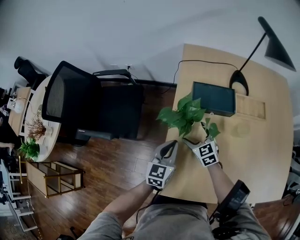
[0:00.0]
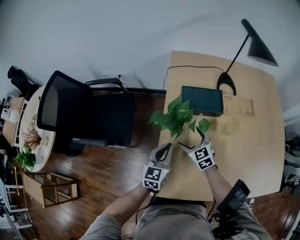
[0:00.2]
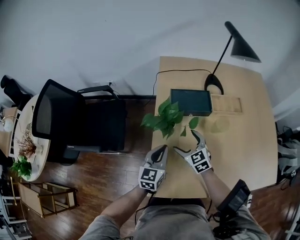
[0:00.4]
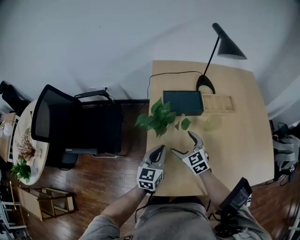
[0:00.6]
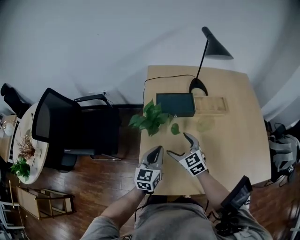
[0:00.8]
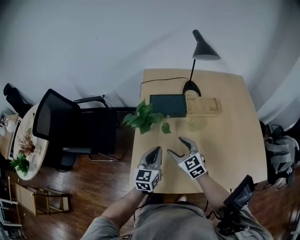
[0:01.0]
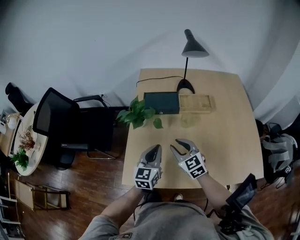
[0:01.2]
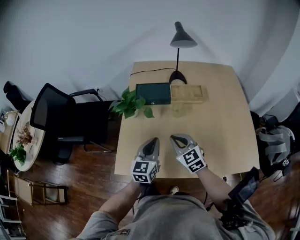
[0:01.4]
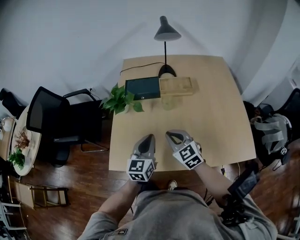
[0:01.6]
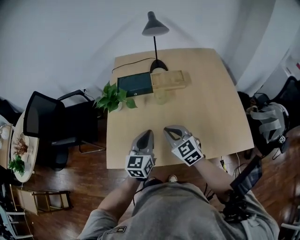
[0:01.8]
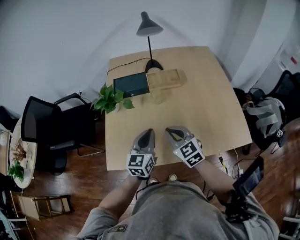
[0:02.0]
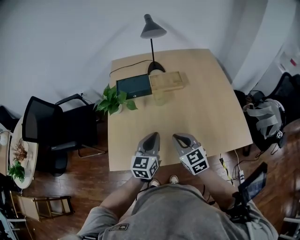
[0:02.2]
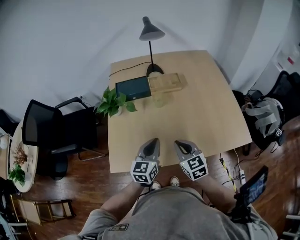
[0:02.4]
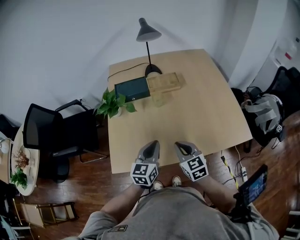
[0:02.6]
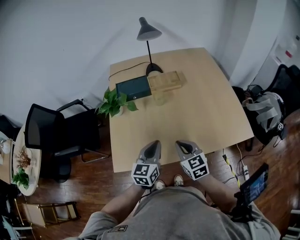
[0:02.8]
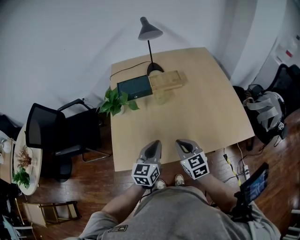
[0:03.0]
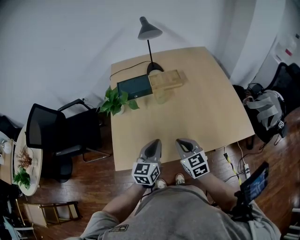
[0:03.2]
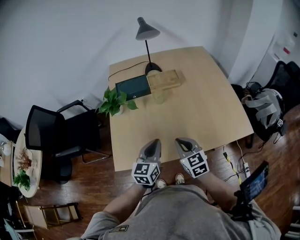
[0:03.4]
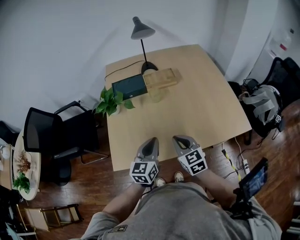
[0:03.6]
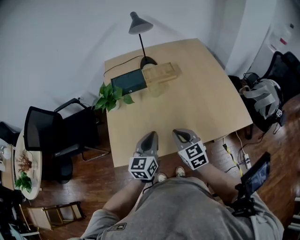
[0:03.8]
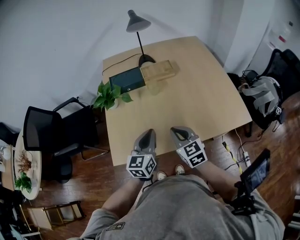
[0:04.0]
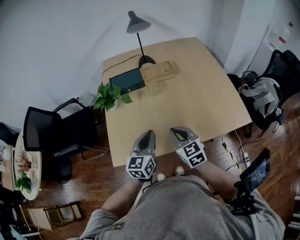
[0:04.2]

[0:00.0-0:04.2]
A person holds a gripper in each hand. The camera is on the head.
0:00.0 to 0:01.4: The right gripper shifts approximately 30 cm backward, to the right and upward, and closes. The left gripper is displaced to the right, backward and upward by approximately 25 cm.
0:01.4 to 0:02.8: Both grippers travel together backward and to the right, approximately 10 cm. The right gripper rotates some 20 degrees.
0:02.8 to 0:04.2: The grippers stay close to where they were, moving slightly.

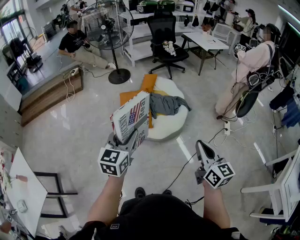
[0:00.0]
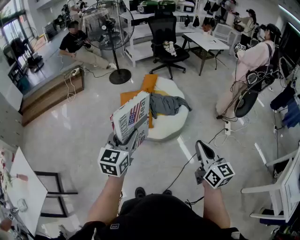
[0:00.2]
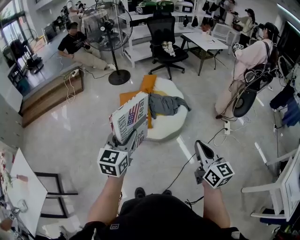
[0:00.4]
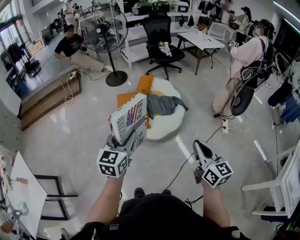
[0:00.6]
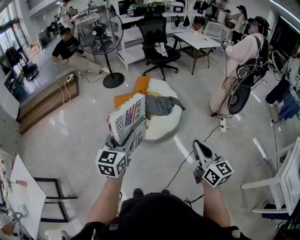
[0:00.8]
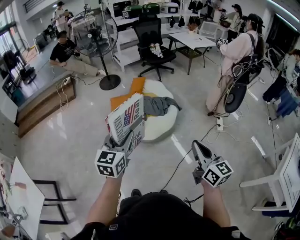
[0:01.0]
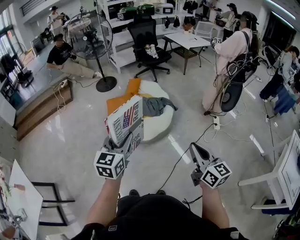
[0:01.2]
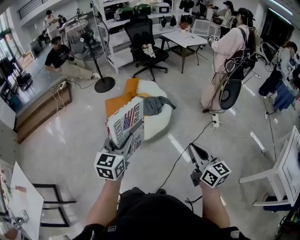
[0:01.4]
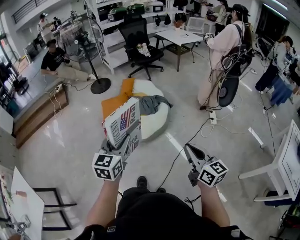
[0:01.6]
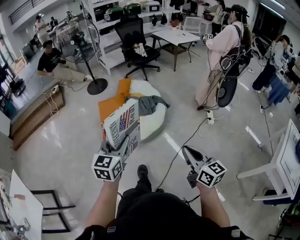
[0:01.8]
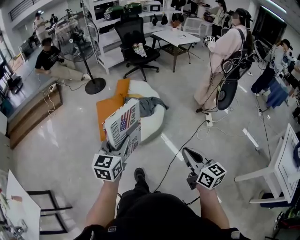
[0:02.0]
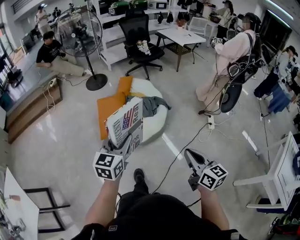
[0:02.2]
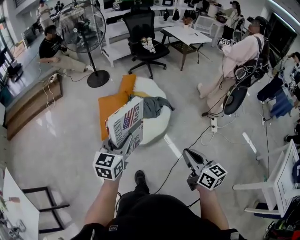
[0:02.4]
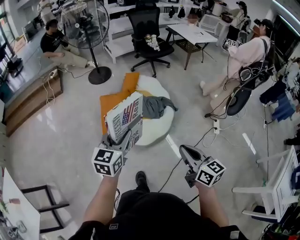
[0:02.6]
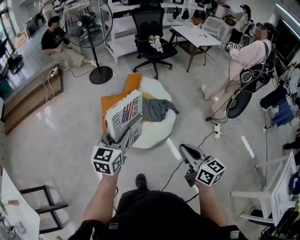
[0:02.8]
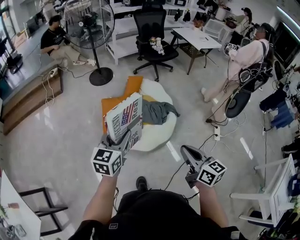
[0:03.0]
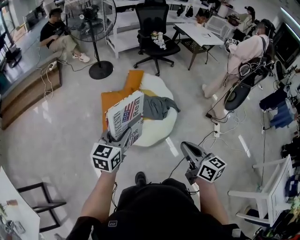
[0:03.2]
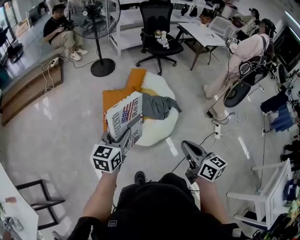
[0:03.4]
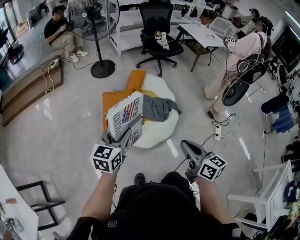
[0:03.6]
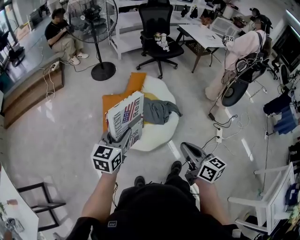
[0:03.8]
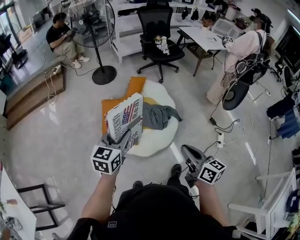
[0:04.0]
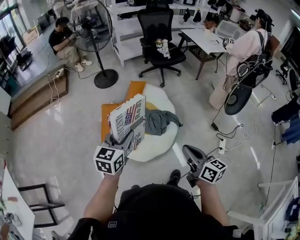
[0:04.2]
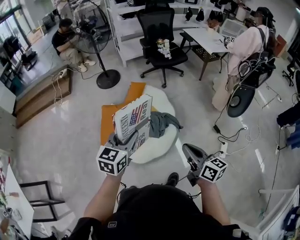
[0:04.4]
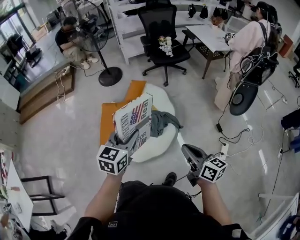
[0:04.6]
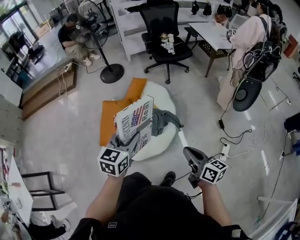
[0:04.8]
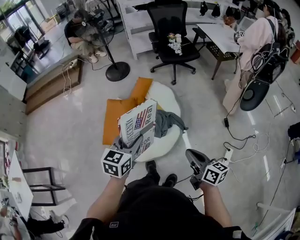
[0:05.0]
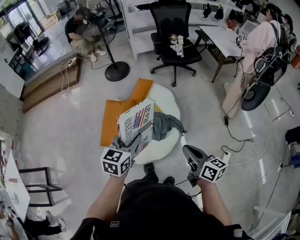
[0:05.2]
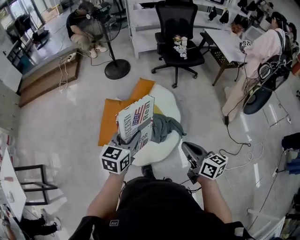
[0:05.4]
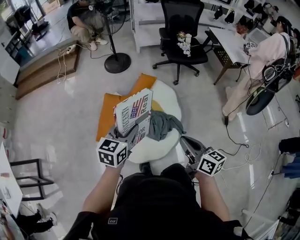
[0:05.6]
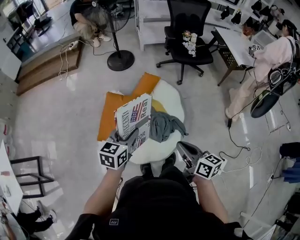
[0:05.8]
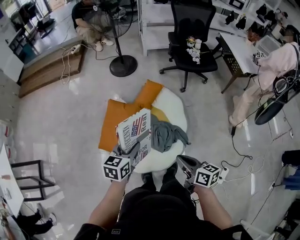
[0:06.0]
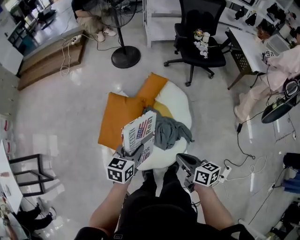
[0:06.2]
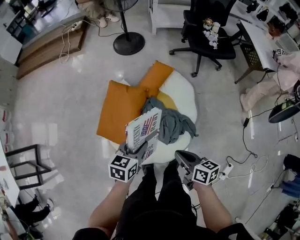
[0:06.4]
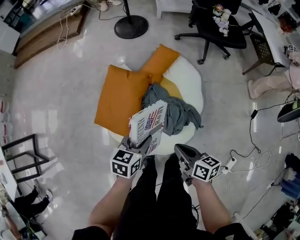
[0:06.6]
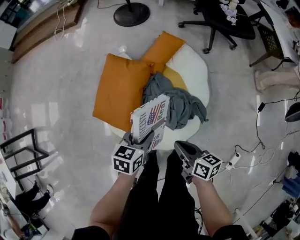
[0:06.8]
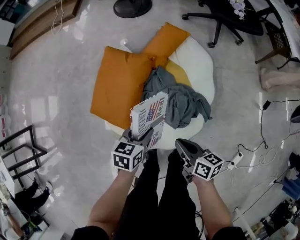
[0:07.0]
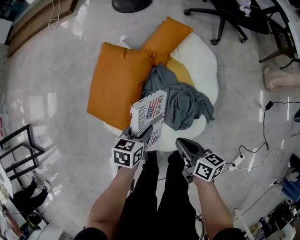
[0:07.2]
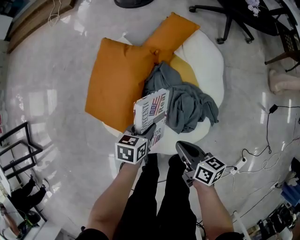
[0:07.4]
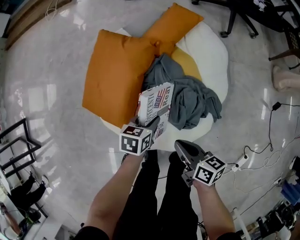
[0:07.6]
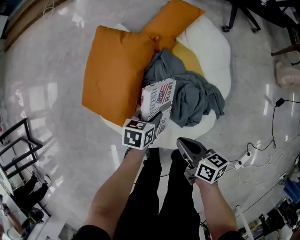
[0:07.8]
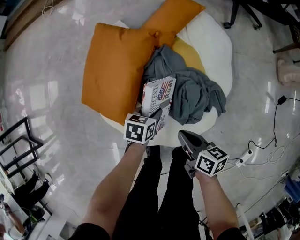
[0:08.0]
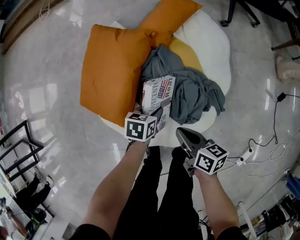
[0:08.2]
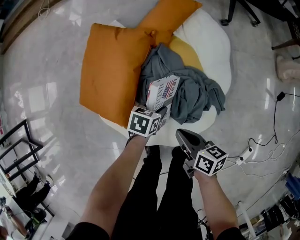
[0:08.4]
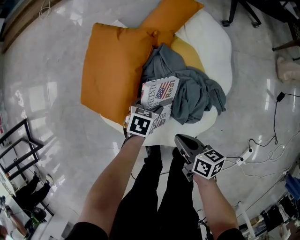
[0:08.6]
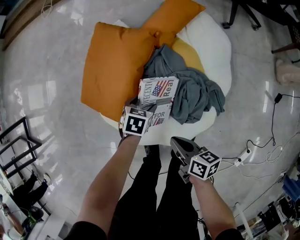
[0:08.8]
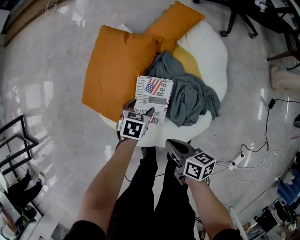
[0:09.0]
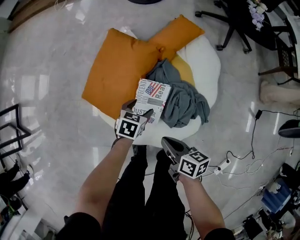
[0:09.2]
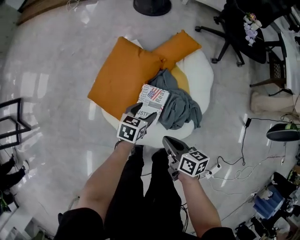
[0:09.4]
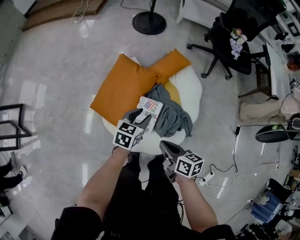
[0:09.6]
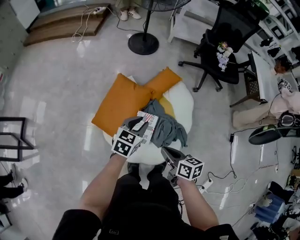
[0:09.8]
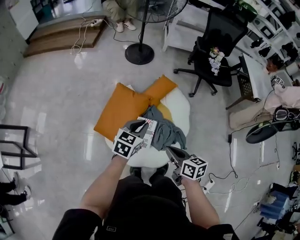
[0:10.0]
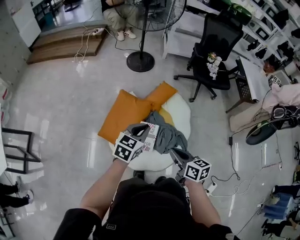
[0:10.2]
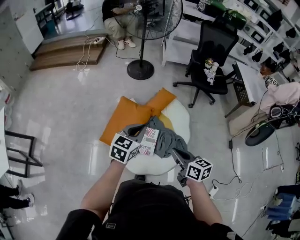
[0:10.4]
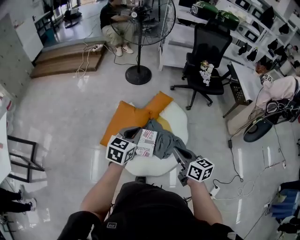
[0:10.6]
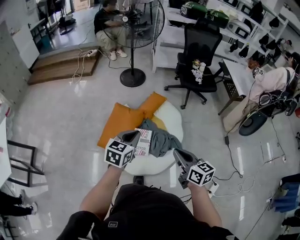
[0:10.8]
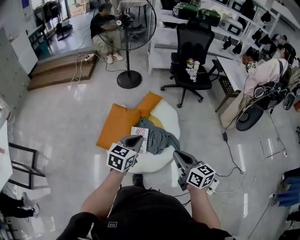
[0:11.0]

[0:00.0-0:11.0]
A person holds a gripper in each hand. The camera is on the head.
0:00.0 to 0:01.6: Both grippers move to the right and backward, some 15 cm.
0:01.6 to 0:03.2: The two grippers go about 30 cm forward and to the left.
0:03.2 to 0:04.8: The grippers both shift to the right and forward by about 35 cm.
0:04.8 to 0:06.2: The two grippers go some 30 cm forward, downward and to the left. The left gripper swivels about 20 degrees; the right gripper swivels about 20 degrees.
0:06.2 to 0:07.8: The grippers both shift downward by some 40 cm. The left gripper turns by about 30 degrees.
0:07.8 to 0:09.4: The grippers both shift upward by some 15 cm. The left gripper opens up.
0:09.4 to 0:11.0: Both grippers move upward and backward, roughly 40 cm. The right gripper turns by approximately 40 degrees, while the left gripper swivels some 30 degrees, and closes.

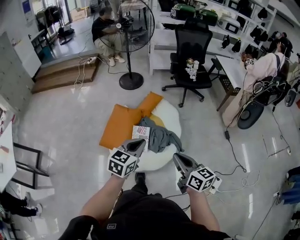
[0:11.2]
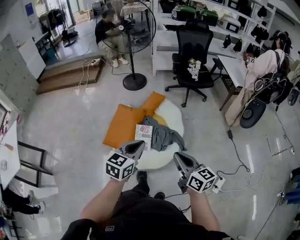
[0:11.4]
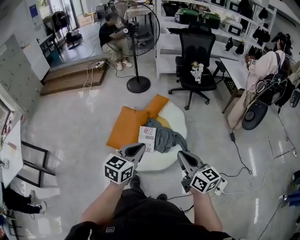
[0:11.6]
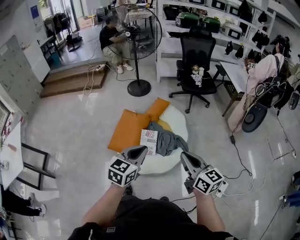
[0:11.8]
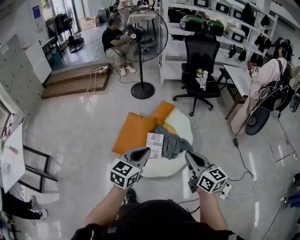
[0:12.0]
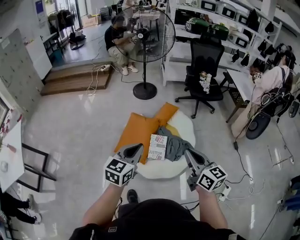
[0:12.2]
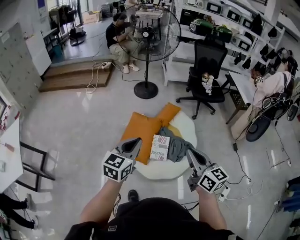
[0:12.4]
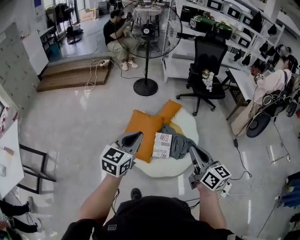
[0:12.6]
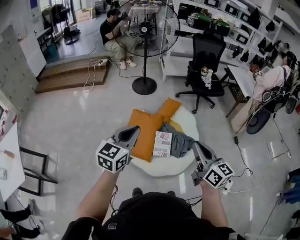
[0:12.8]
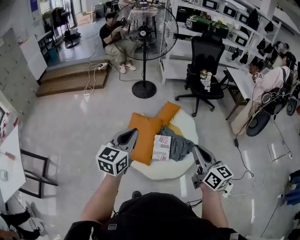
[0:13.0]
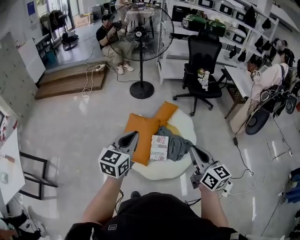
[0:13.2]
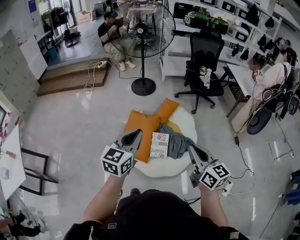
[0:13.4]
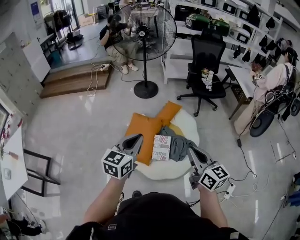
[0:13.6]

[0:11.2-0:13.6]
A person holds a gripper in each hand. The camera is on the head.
0:11.2 to 0:12.4: The left gripper is displaced to the left by roughly 25 cm; the right gripper goes roughly 20 cm to the left and upward.

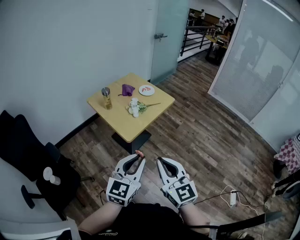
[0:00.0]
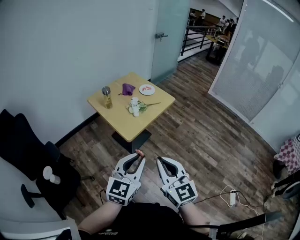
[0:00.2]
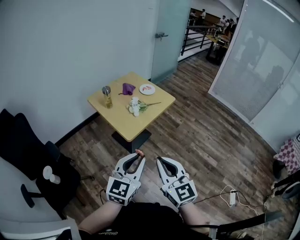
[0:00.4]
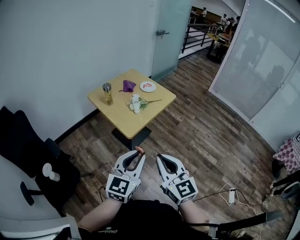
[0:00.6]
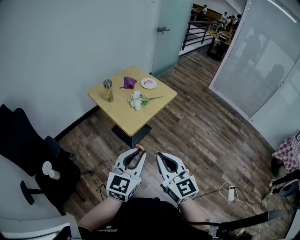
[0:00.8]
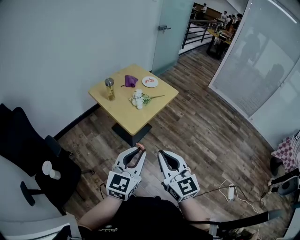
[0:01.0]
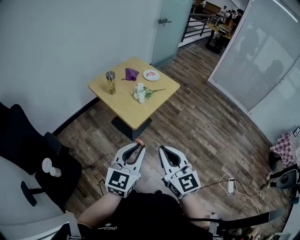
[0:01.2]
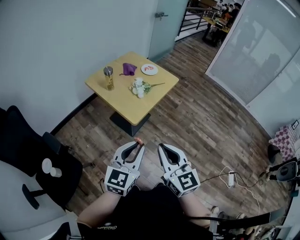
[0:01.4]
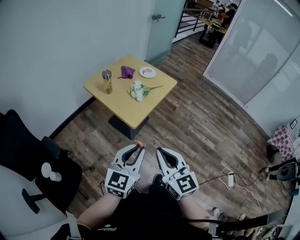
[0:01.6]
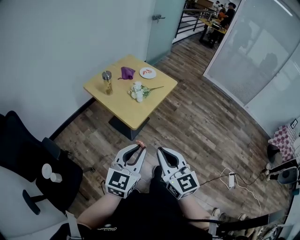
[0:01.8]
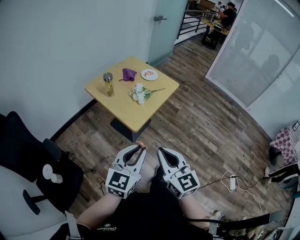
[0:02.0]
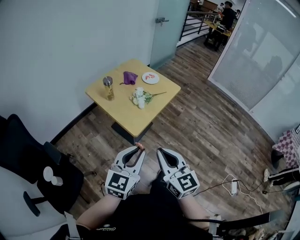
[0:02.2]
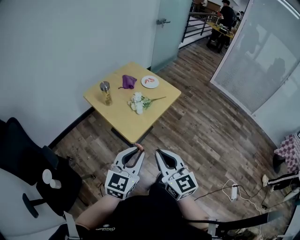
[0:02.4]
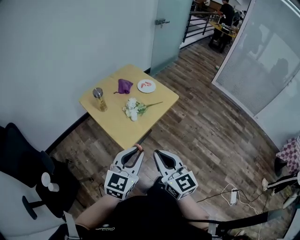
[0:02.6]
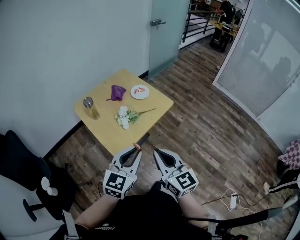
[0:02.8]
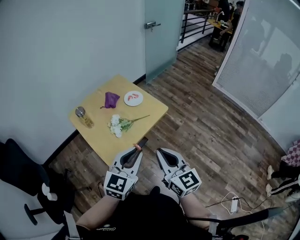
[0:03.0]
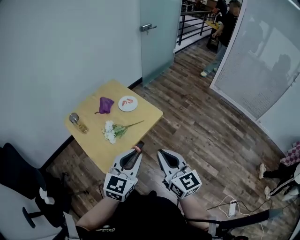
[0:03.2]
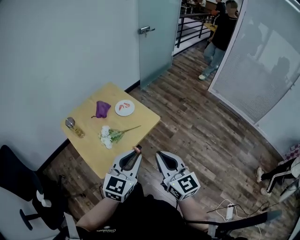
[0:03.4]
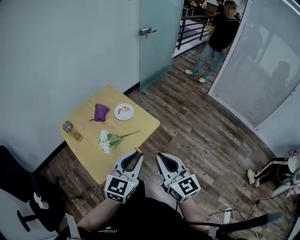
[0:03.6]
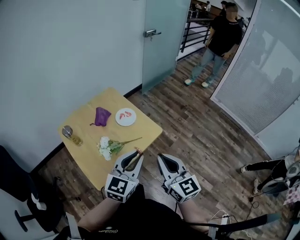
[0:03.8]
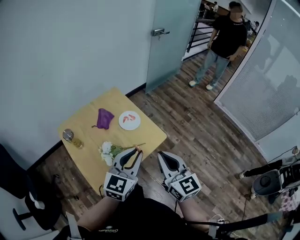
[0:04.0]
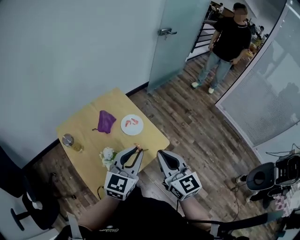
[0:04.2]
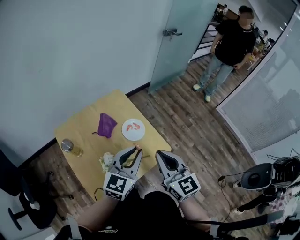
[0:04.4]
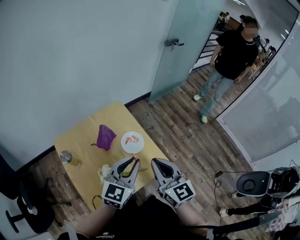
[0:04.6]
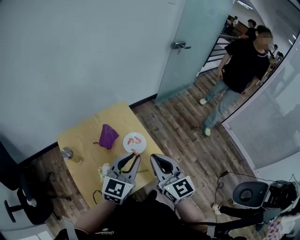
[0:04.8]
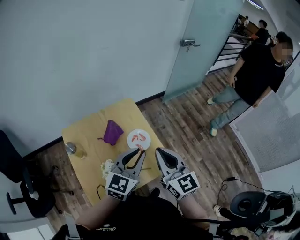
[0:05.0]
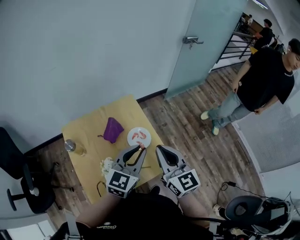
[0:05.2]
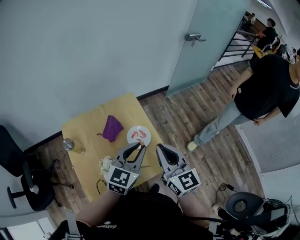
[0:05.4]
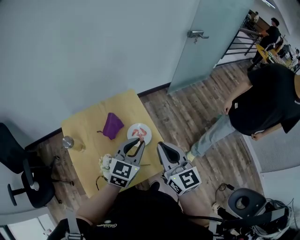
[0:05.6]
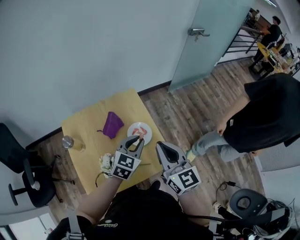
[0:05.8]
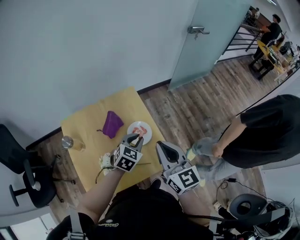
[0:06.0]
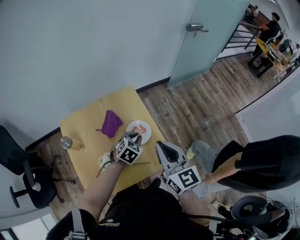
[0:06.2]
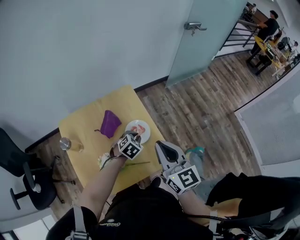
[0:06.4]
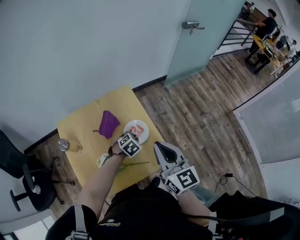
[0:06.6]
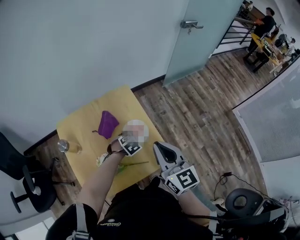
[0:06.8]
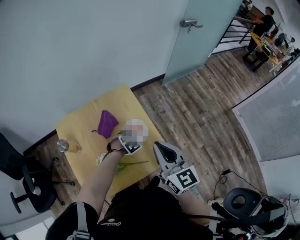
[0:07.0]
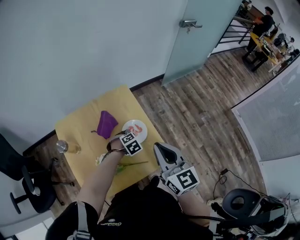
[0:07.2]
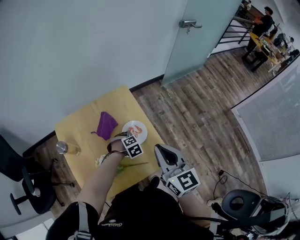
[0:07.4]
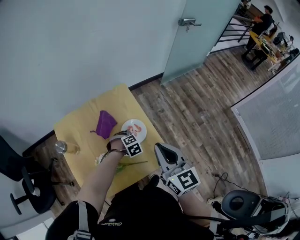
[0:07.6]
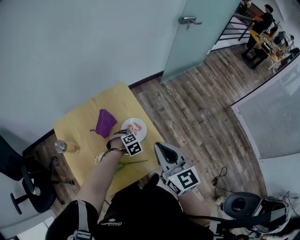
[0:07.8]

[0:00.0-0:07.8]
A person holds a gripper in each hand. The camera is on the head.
0:00.0 to 0:01.6: The grippers both shift to the left by about 10 cm.
0:01.6 to 0:03.2: The grippers both shift forward and to the right by about 40 cm.
0:03.2 to 0:04.6: The two grippers go roughly 30 cm forward.
0:04.6 to 0:06.2: The right gripper goes some 10 cm forward; the left gripper shifts about 25 cm downward and forward, and points its fingers about 40 degrees further downward.
0:06.2 to 0:07.8: The left gripper is displaced downward by approximately 15 cm, and swivels about 40 degrees.
